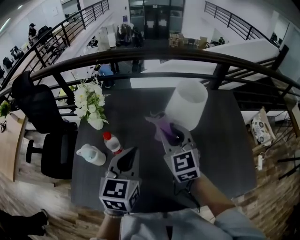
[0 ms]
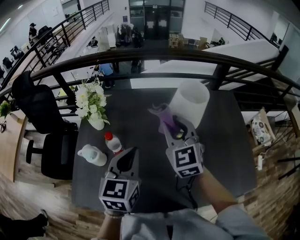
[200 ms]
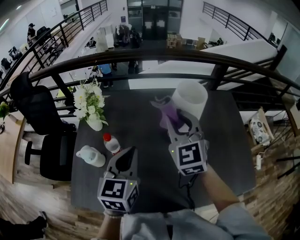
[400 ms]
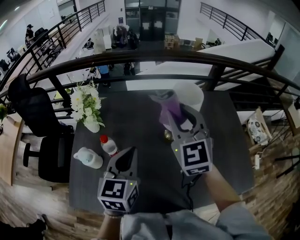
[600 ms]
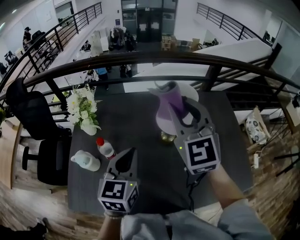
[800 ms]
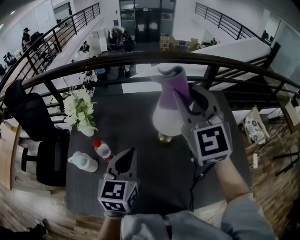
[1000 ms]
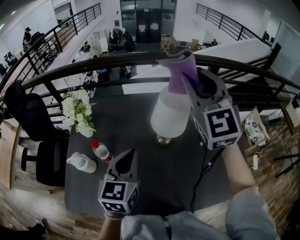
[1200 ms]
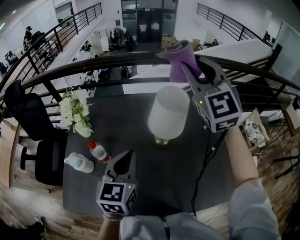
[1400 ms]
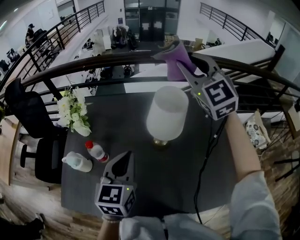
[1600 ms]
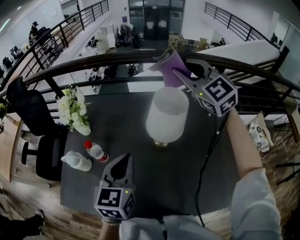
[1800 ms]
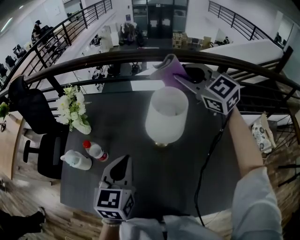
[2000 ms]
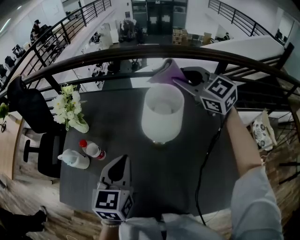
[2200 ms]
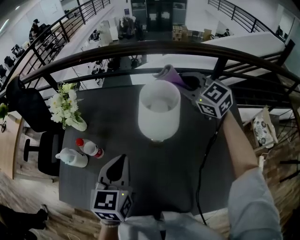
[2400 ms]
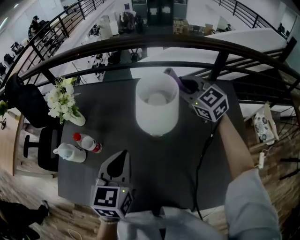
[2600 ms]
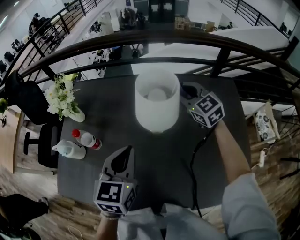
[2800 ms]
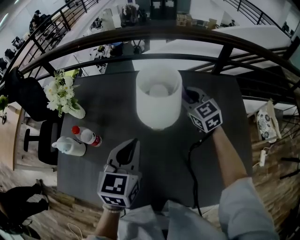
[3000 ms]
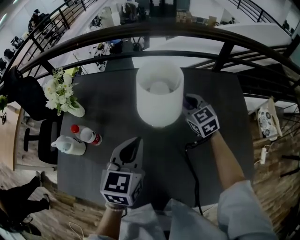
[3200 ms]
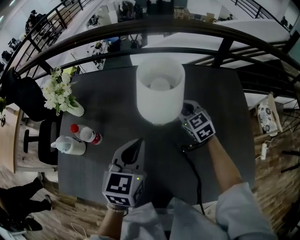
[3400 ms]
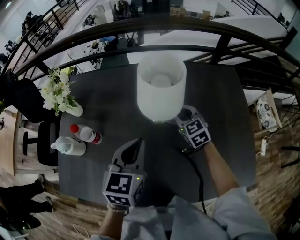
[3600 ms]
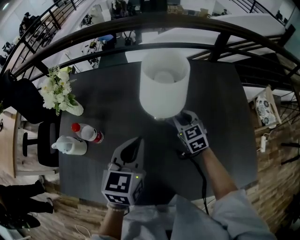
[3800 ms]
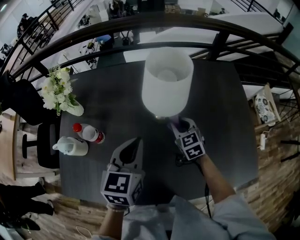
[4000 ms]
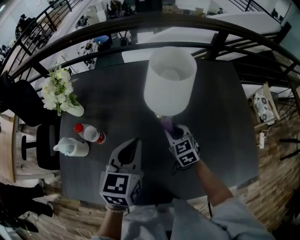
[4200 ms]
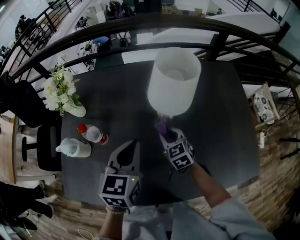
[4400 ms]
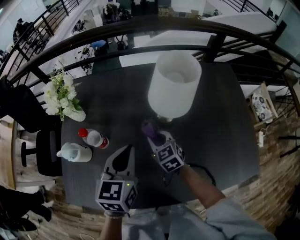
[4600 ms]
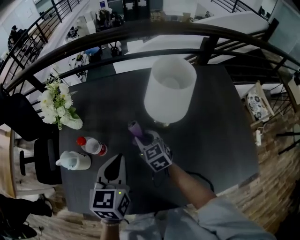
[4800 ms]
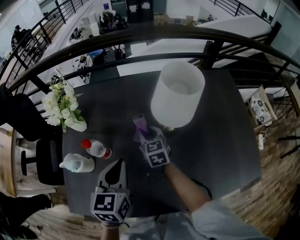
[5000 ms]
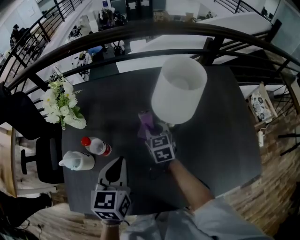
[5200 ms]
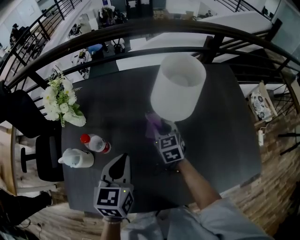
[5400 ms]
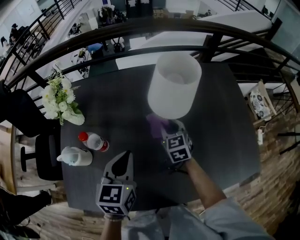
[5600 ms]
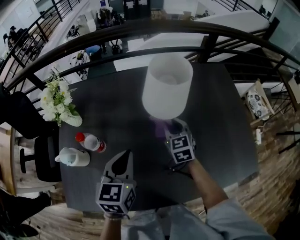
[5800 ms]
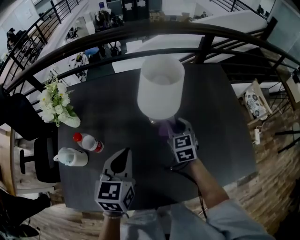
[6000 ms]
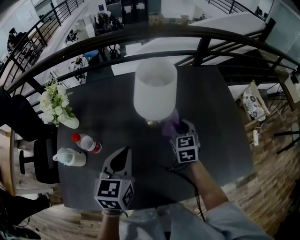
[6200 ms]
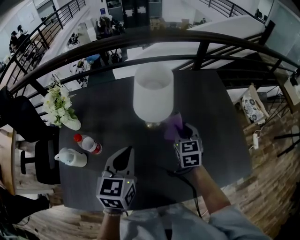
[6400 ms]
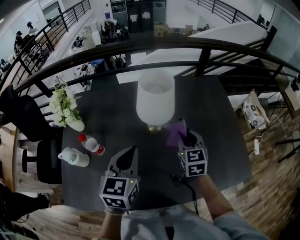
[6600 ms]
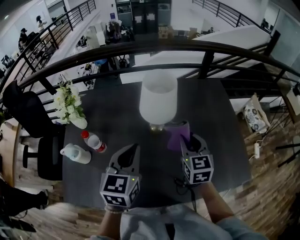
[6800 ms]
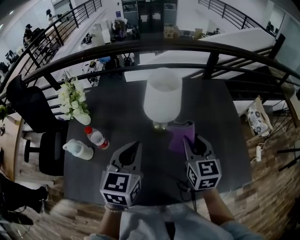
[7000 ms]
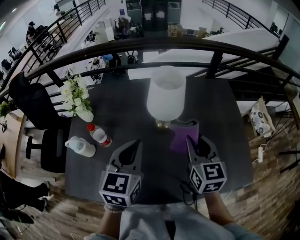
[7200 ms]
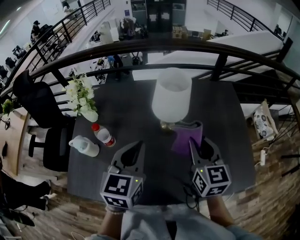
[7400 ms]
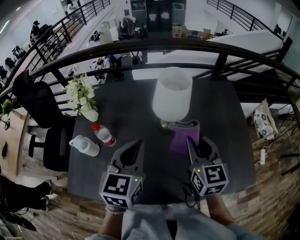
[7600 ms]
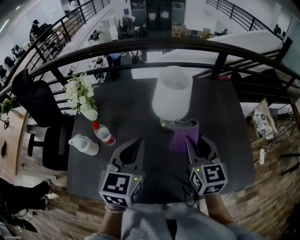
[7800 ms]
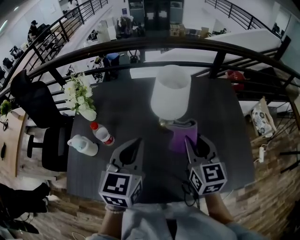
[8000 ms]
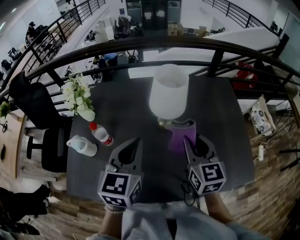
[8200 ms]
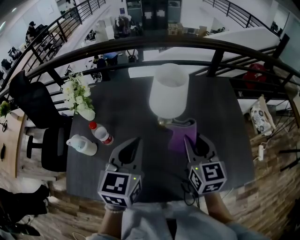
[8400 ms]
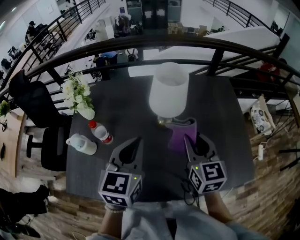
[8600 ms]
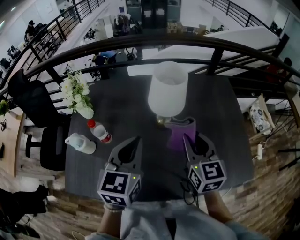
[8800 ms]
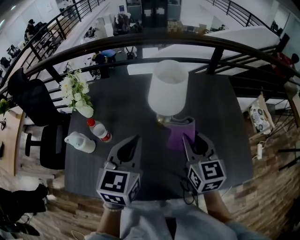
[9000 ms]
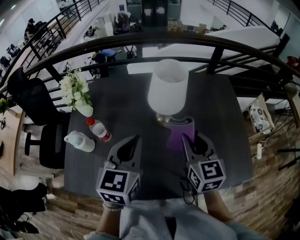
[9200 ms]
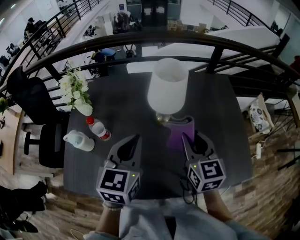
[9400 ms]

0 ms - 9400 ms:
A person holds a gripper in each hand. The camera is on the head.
0 ms - 1600 ms: The right gripper travels upward, forward and to the right by roughly 30 cm, and rotates approximately 30 degrees. Meanwhile the left gripper is displaced to the right by roughly 5 cm.
1600 ms - 3200 ms: The left gripper shifts about 10 cm to the right and downward. The right gripper travels downward by some 35 cm, and swivels some 40 degrees.
3200 ms - 4800 ms: The right gripper travels to the left and backward by some 25 cm. Meanwhile the left gripper goes about 15 cm to the left.
4800 ms - 6200 ms: The right gripper goes some 20 cm to the right, and rotates some 30 degrees, while the left gripper goes approximately 5 cm to the right.
6200 ms - 7800 ms: The right gripper travels upward and backward by approximately 20 cm. The left gripper moves upward, some 10 cm.
7800 ms - 9400 ms: The grippers make only small movements.

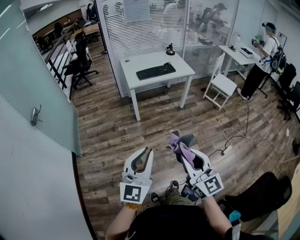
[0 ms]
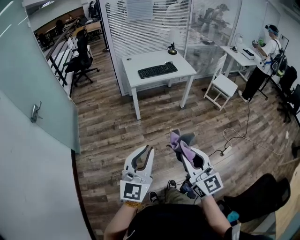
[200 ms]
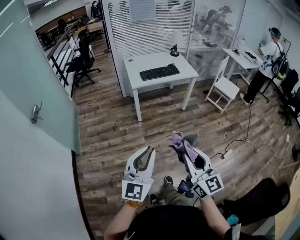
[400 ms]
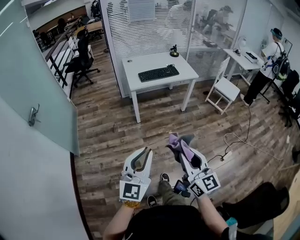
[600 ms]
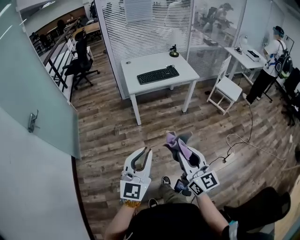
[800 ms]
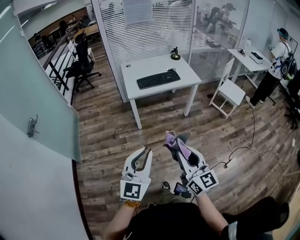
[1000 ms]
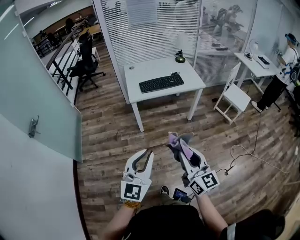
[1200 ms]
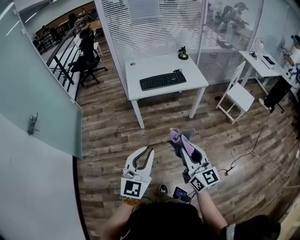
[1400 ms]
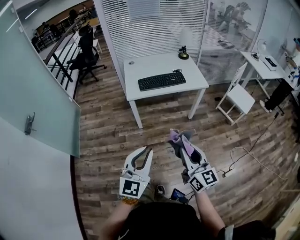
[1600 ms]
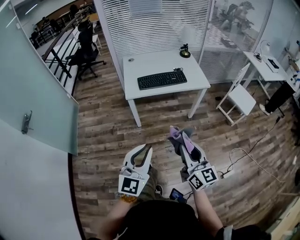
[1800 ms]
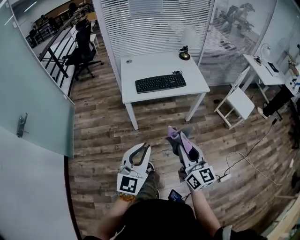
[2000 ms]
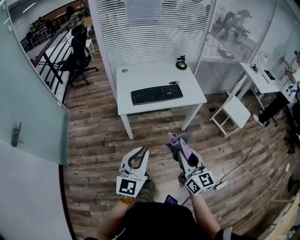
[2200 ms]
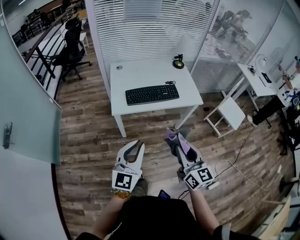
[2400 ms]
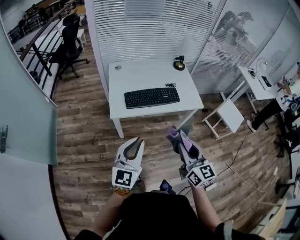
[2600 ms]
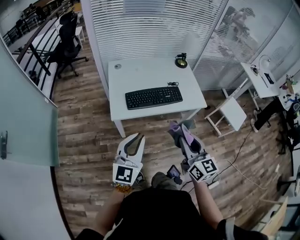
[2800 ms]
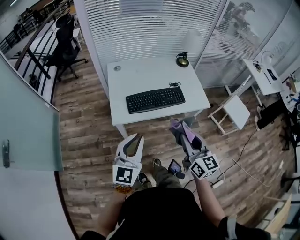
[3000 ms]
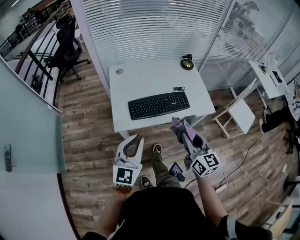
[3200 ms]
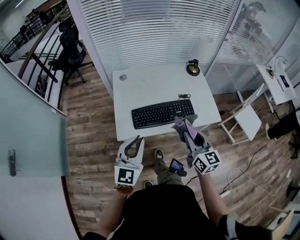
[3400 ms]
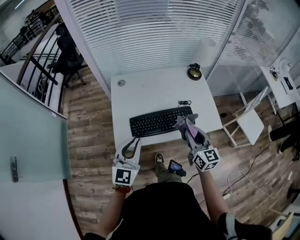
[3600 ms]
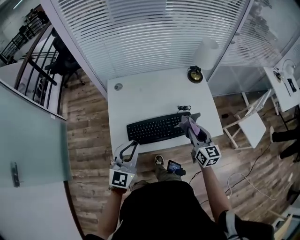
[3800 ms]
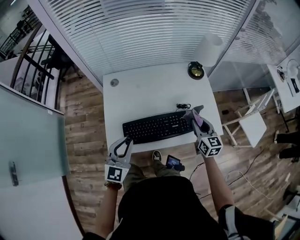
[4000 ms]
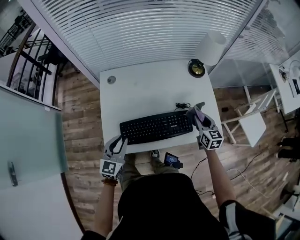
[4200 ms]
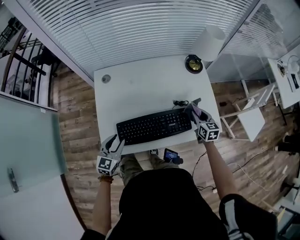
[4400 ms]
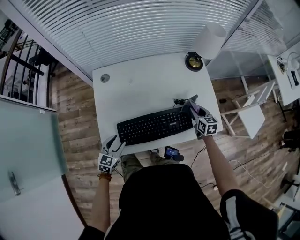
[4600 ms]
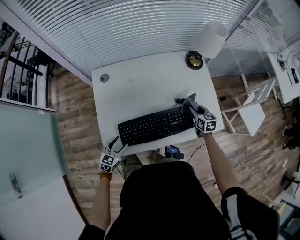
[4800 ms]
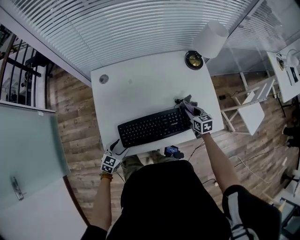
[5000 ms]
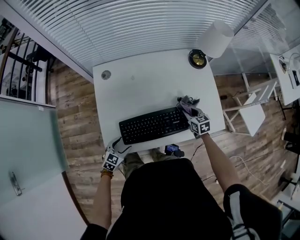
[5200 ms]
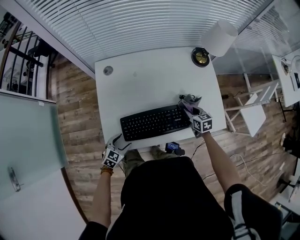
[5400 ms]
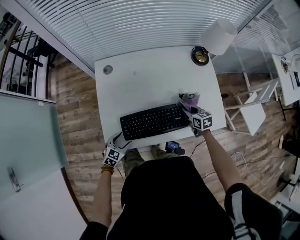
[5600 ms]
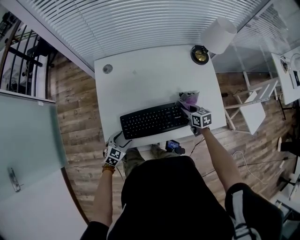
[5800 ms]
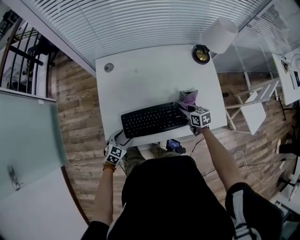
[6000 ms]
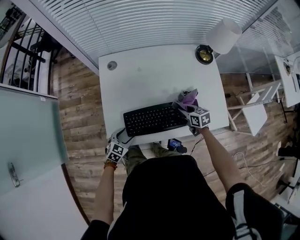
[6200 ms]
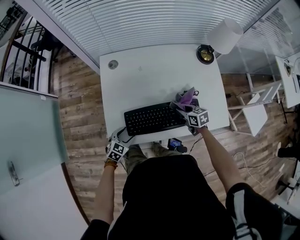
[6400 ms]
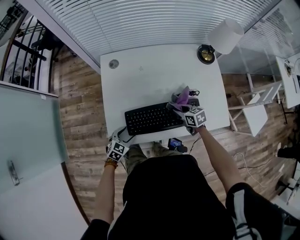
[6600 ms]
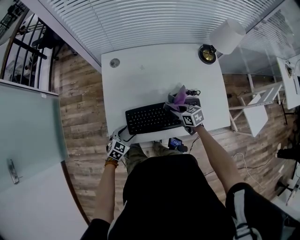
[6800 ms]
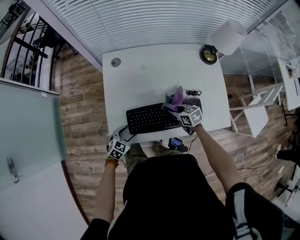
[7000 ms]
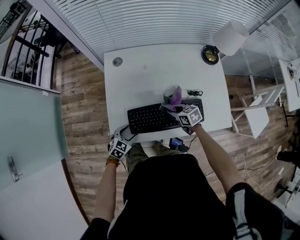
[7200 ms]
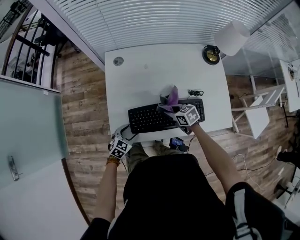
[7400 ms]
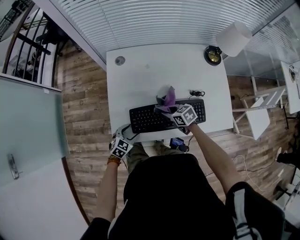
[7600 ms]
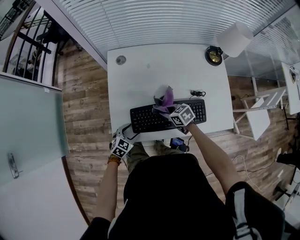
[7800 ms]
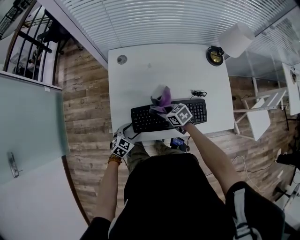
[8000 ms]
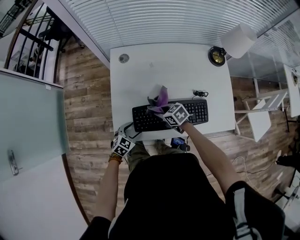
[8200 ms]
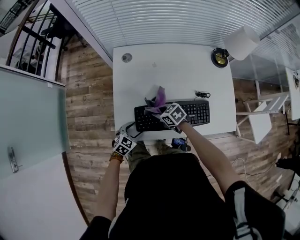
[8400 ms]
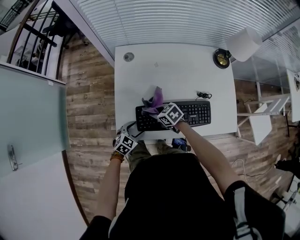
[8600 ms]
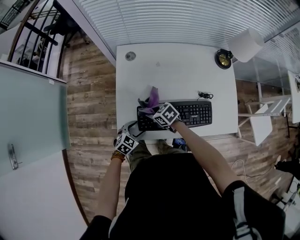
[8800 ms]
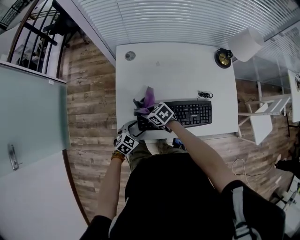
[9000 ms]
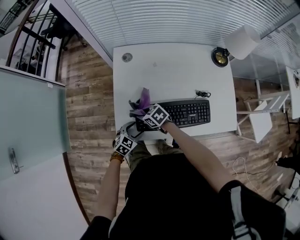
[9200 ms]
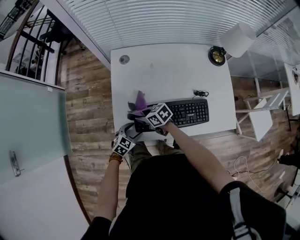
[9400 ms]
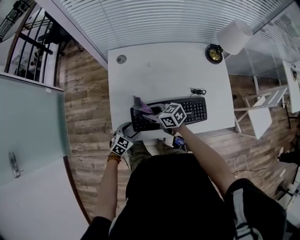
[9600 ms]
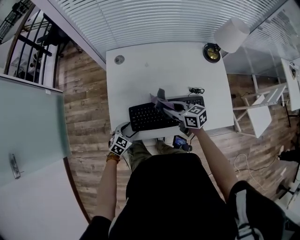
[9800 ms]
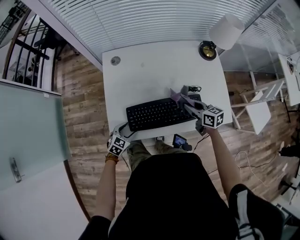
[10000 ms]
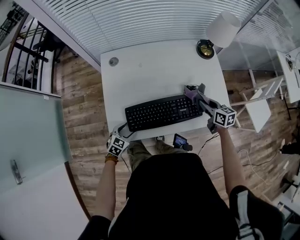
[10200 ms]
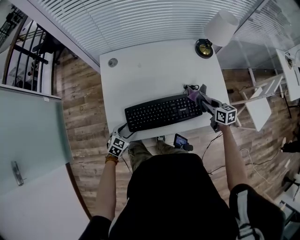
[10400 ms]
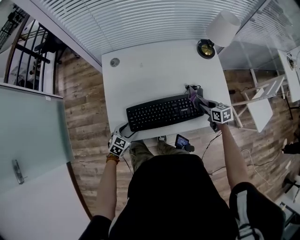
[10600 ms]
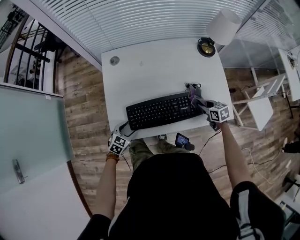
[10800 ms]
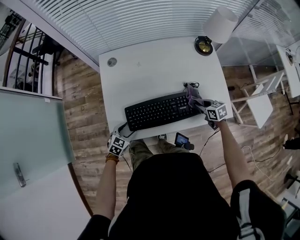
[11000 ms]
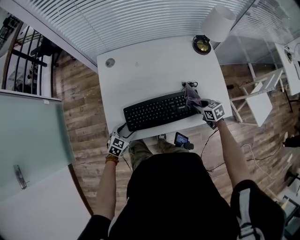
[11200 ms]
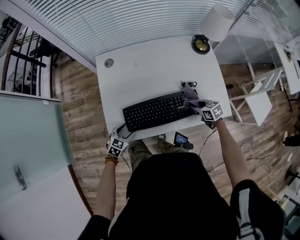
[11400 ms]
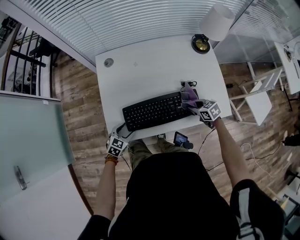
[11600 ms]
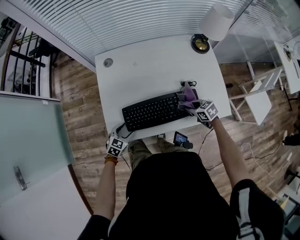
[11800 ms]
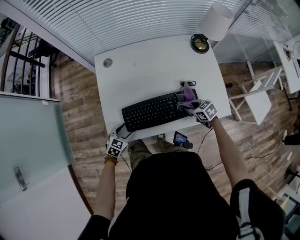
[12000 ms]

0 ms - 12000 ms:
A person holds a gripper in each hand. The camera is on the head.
0 ms - 1600 ms: Both grippers move forward, approximately 30 cm.
1600 ms - 3000 ms: The grippers both shift forward by approximately 35 cm.
3000 ms - 4400 ms: The two grippers go about 40 cm forward and downward. The right gripper swivels about 30 degrees. The left gripper changes its angle by roughly 20 degrees.
4400 ms - 6000 ms: The right gripper shifts roughly 15 cm to the left and downward, and rotates roughly 30 degrees. The left gripper is displaced downward by roughly 15 cm, changes its angle by approximately 30 degrees, and opens its fingers.
6000 ms - 7600 ms: The right gripper is displaced to the left by some 15 cm, and changes its angle by about 20 degrees.
7600 ms - 9000 ms: The right gripper ends up approximately 15 cm from where it was.
9000 ms - 10400 ms: The right gripper shifts by approximately 40 cm, and turns by some 50 degrees.
10400 ms - 12000 ms: The right gripper is displaced to the left and downward by roughly 10 cm, and rotates roughly 30 degrees.

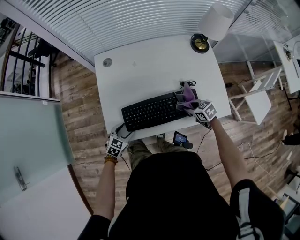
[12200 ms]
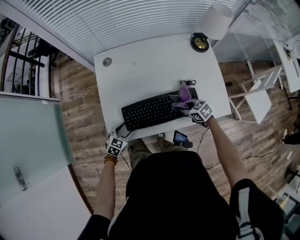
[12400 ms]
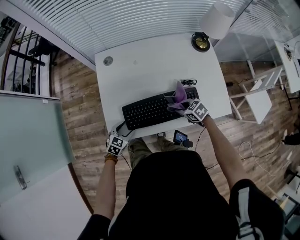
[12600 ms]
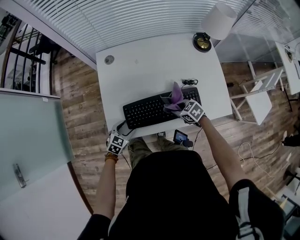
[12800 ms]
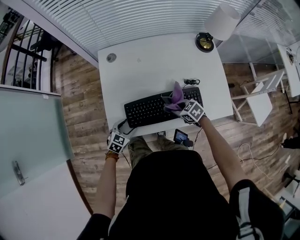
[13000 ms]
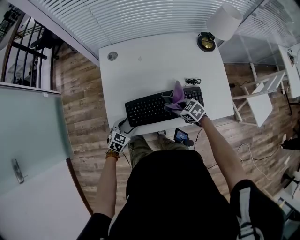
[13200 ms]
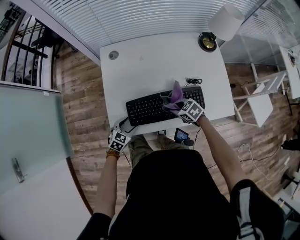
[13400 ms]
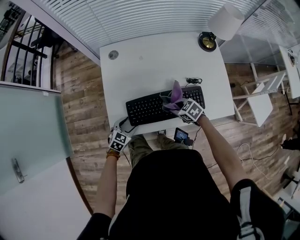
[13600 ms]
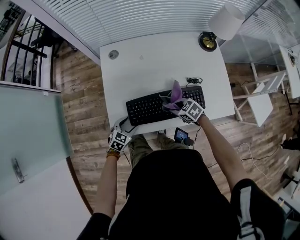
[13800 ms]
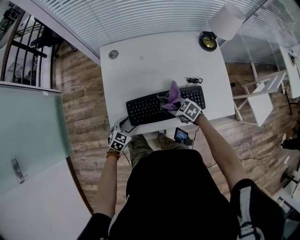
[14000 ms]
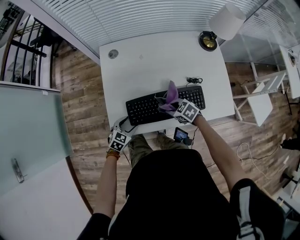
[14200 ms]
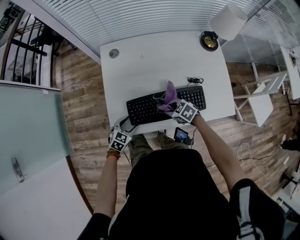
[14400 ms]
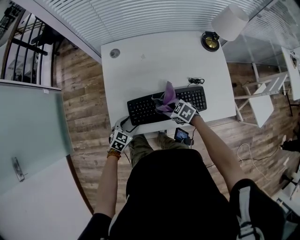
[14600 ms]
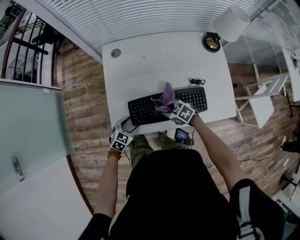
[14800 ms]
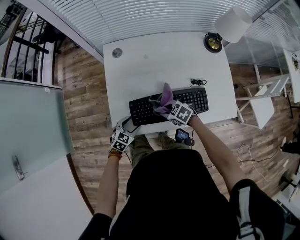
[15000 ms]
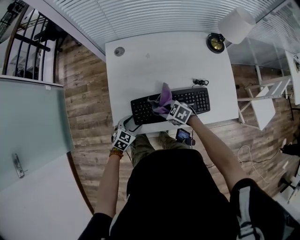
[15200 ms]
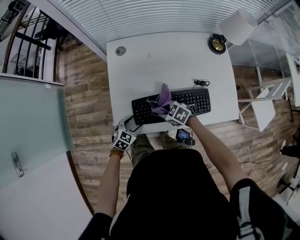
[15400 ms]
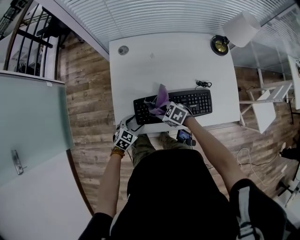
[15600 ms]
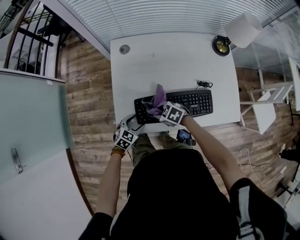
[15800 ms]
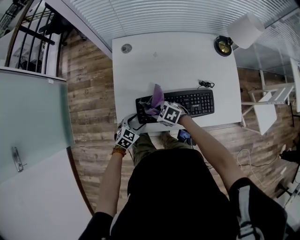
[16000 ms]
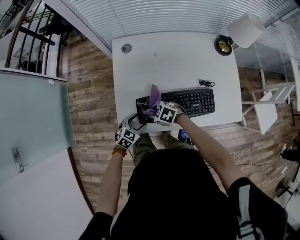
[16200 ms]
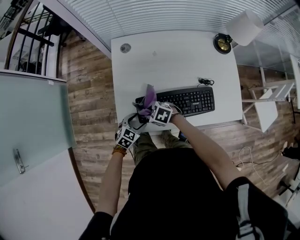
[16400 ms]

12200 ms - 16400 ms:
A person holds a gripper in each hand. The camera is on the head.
12200 ms - 13600 ms: The right gripper travels to the left by about 10 cm.
13600 ms - 15000 ms: The right gripper ends up some 10 cm from where it was.
15000 ms - 16400 ms: The right gripper changes place by roughly 15 cm.
